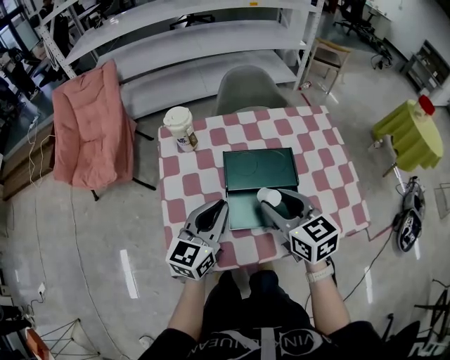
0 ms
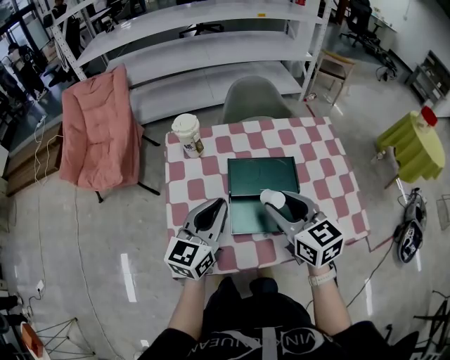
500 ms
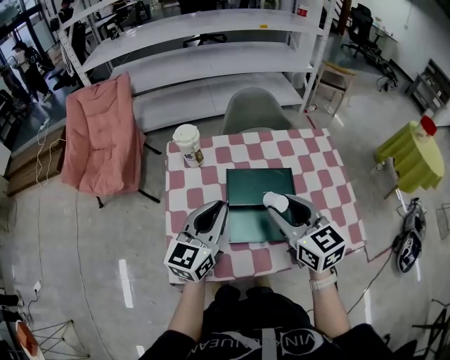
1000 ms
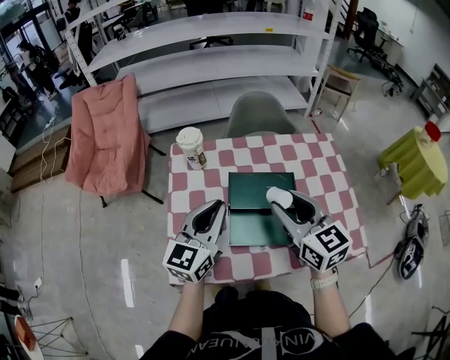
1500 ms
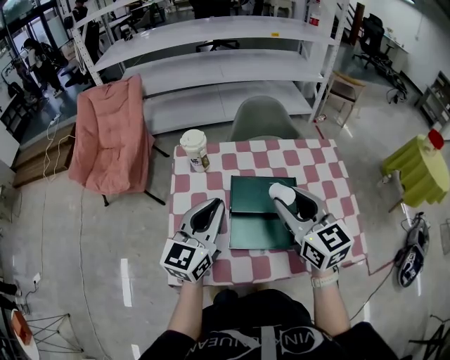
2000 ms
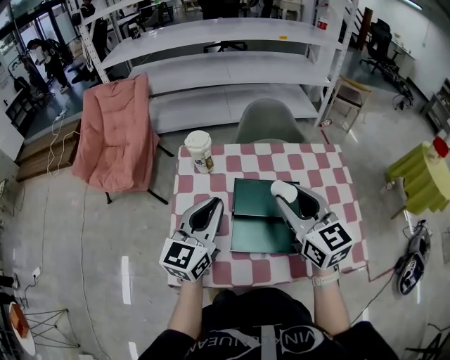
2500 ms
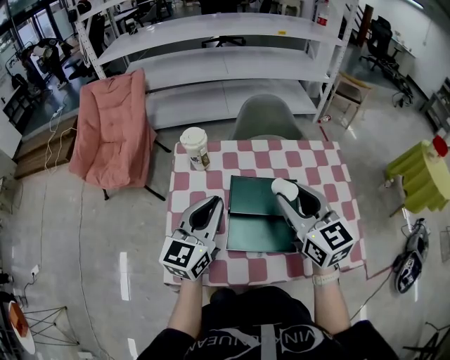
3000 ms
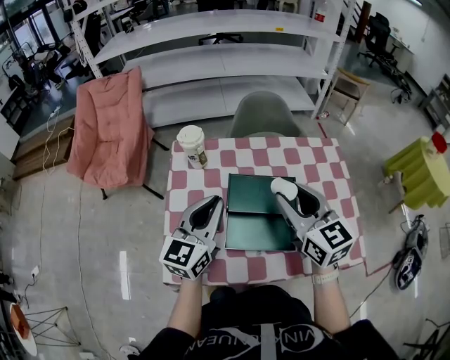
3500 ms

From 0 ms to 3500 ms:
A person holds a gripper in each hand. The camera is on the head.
From 0 ms to 2000 ms: Both grippers travel together upward, approximately 10 cm.
From 2000 ms to 3500 ms: The grippers stay close to where they were, moving slightly.

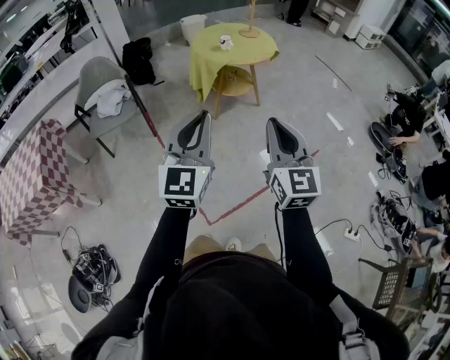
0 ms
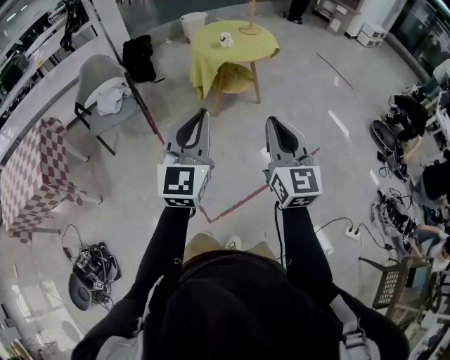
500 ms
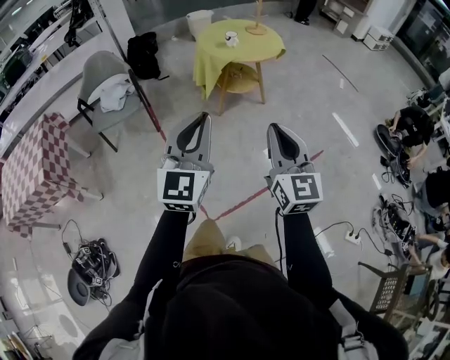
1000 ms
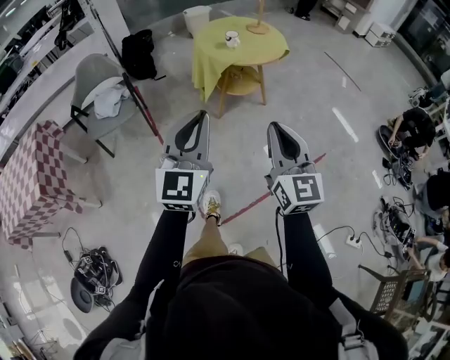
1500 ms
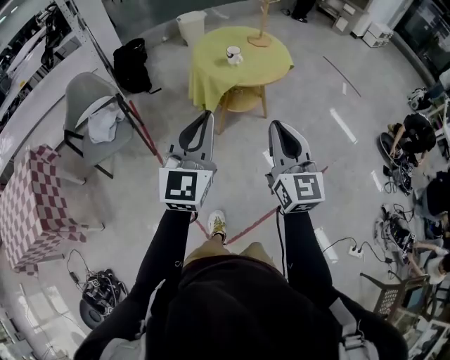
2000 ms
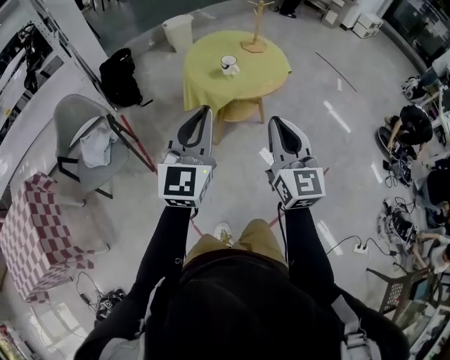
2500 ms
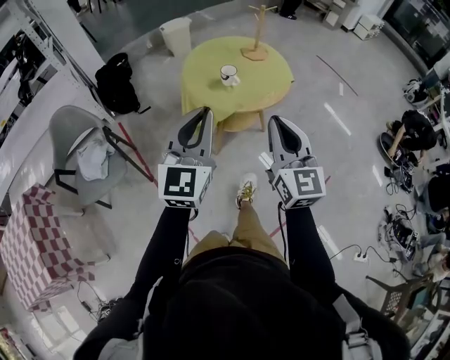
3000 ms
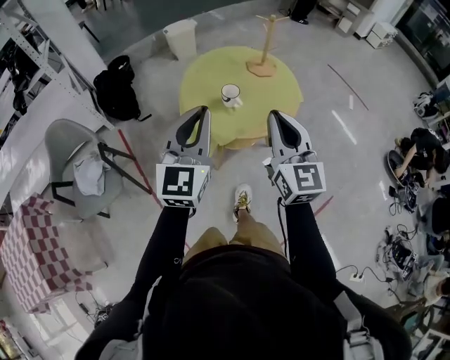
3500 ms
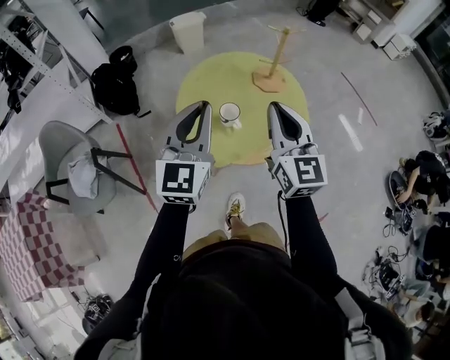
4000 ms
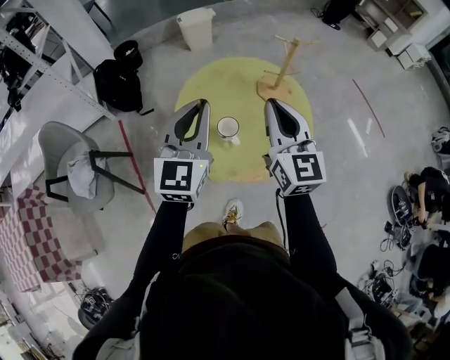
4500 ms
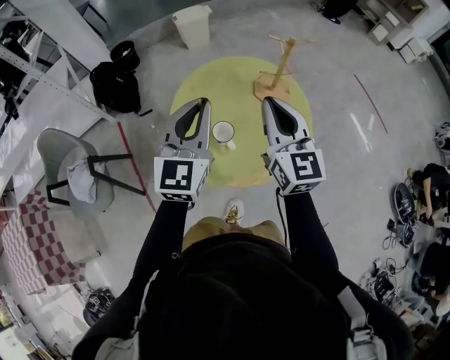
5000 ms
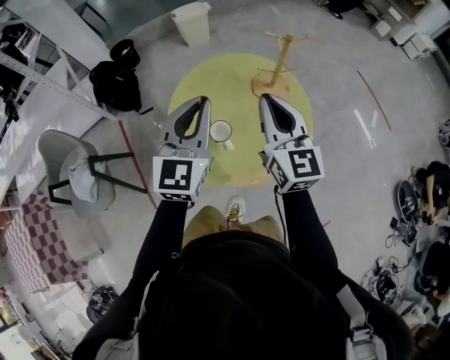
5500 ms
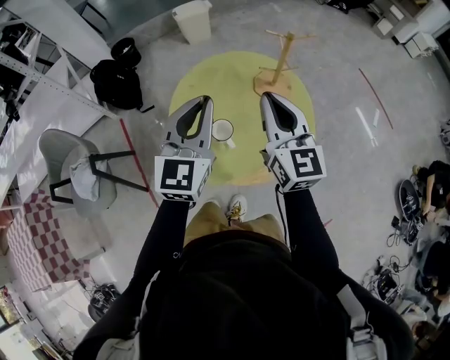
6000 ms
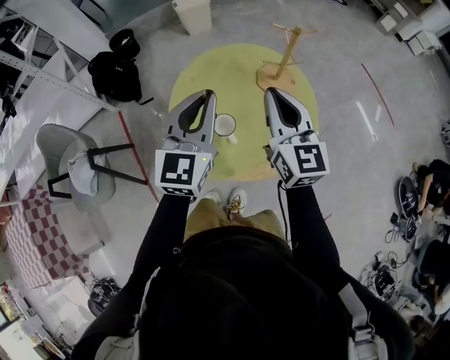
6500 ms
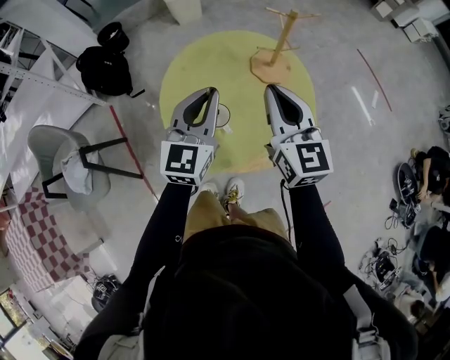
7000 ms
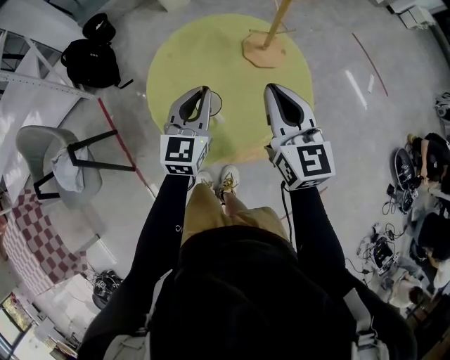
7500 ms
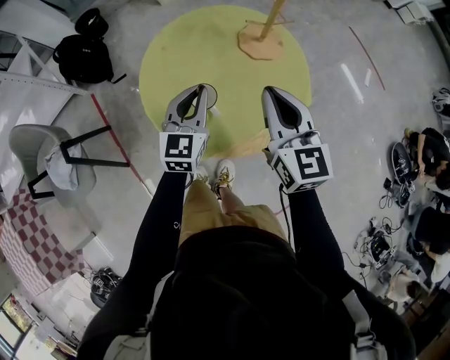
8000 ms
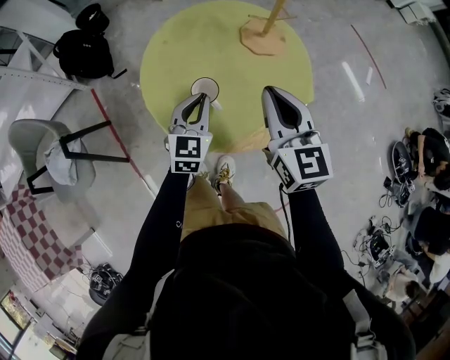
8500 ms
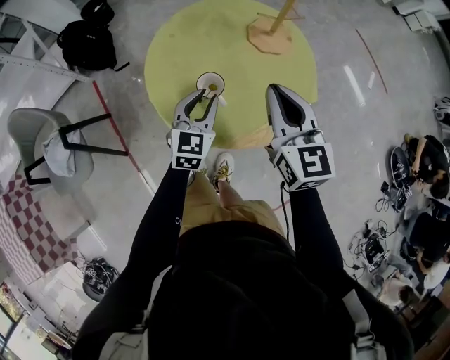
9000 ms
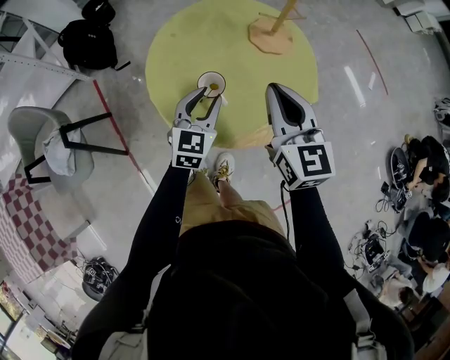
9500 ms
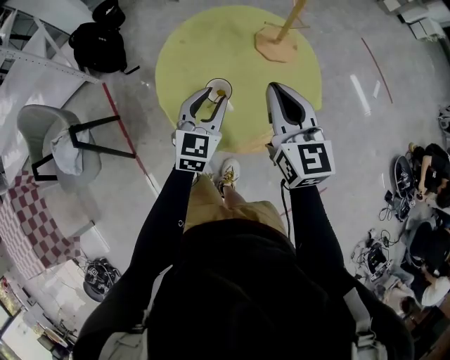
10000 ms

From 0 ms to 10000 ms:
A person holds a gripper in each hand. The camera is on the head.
From 0 ms to 2000 ms: Both grippers move forward, roughly 20 cm.
From 2000 ms to 4000 ms: The two grippers travel together, forward, approximately 40 cm.
From 4000 ms to 6000 ms: The two grippers go about 10 cm forward.
From 6000 ms to 8000 ms: The left gripper goes about 20 cm downward. Meanwhile the right gripper goes about 10 cm downward.
From 8000 ms to 10000 ms: The left gripper opens up.

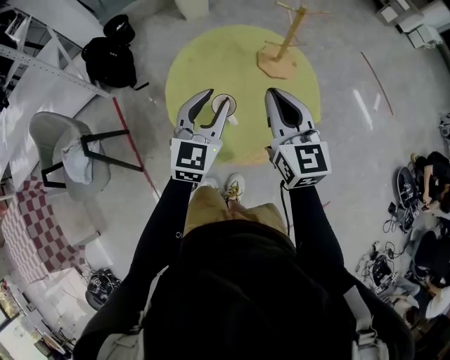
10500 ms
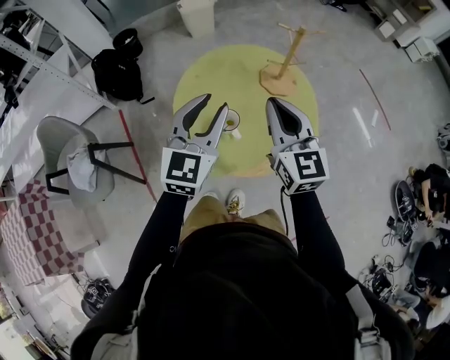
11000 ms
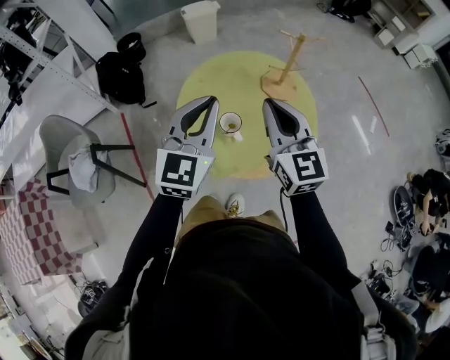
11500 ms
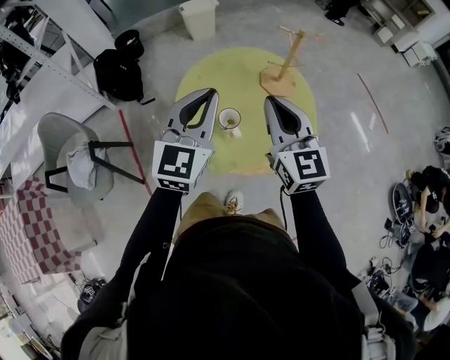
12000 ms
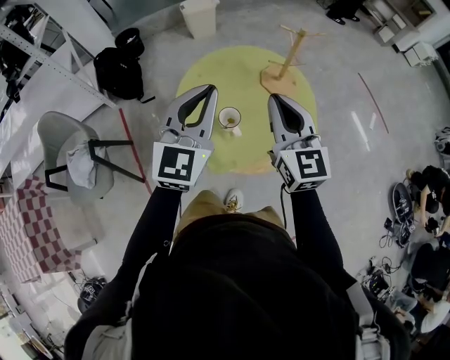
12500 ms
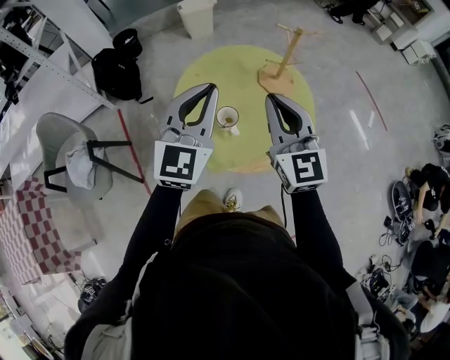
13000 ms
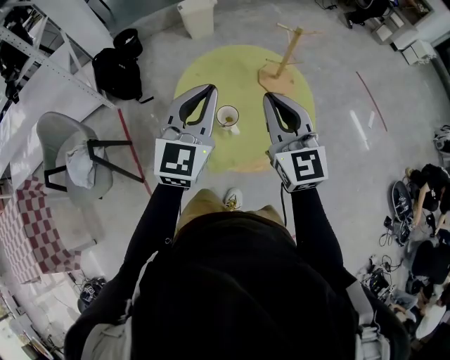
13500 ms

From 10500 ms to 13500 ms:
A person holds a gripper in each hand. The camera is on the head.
From 10500 ms to 12000 ms: The left gripper shifts about 10 cm upward, and closes up. Meanwhile the right gripper moves about 5 cm.
From 12000 ms to 13500 ms: The grippers make only small movements.

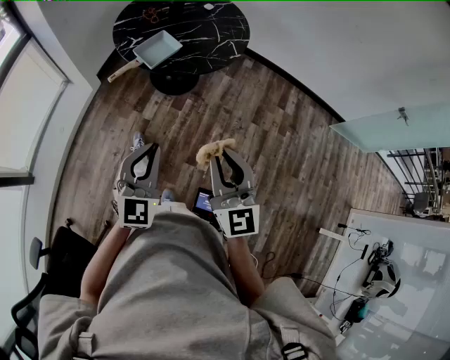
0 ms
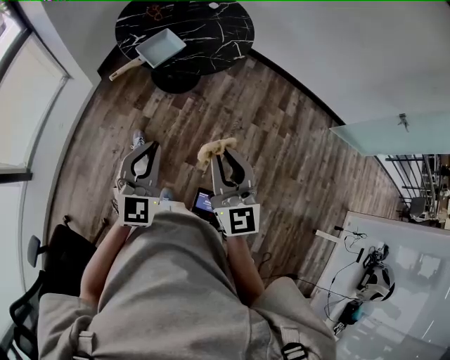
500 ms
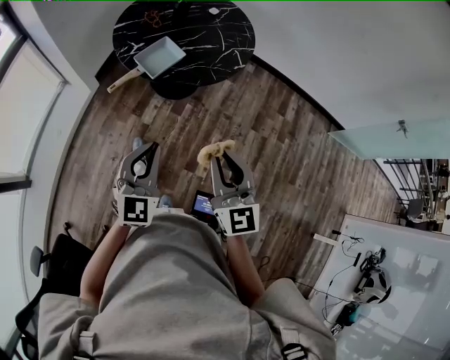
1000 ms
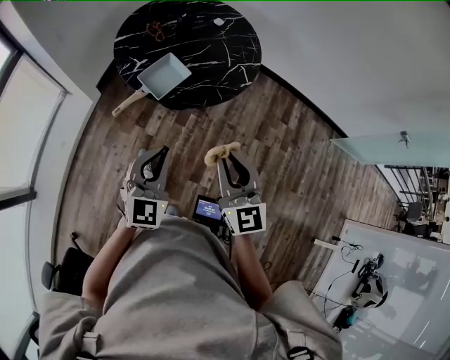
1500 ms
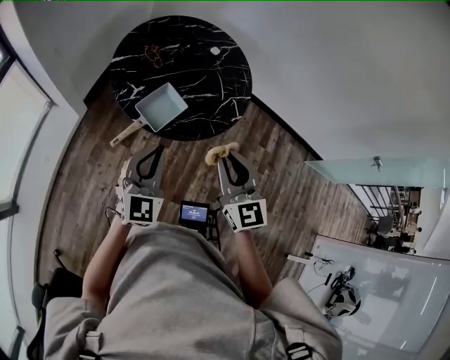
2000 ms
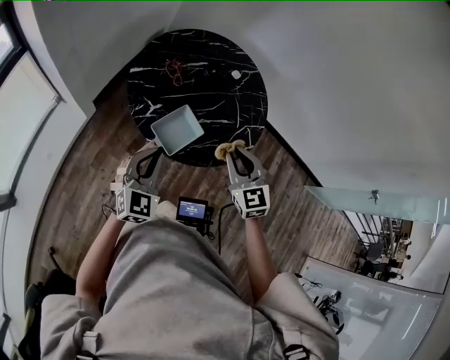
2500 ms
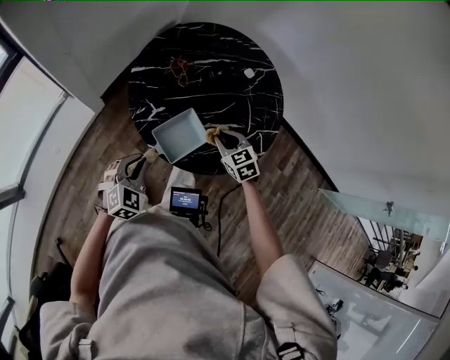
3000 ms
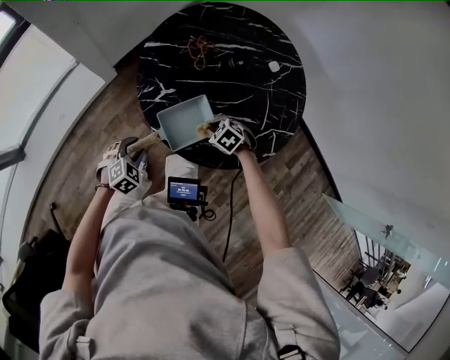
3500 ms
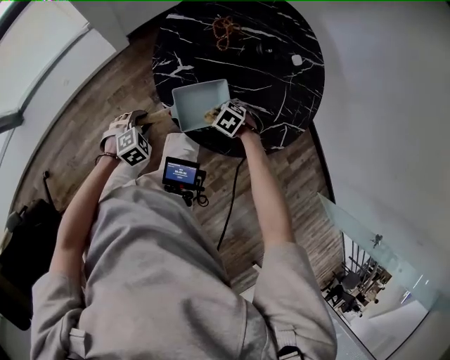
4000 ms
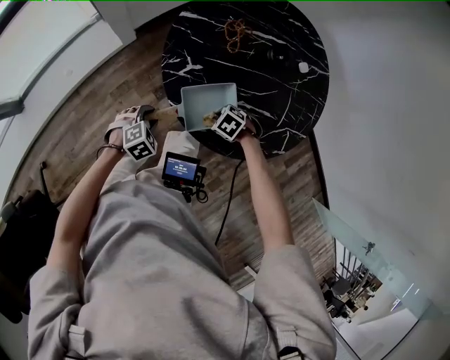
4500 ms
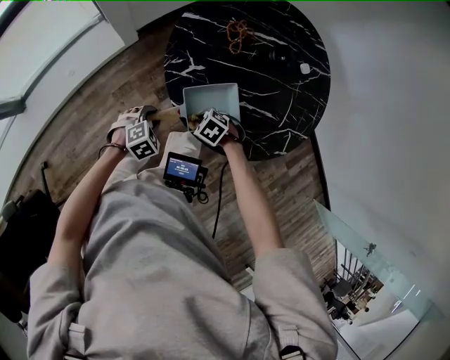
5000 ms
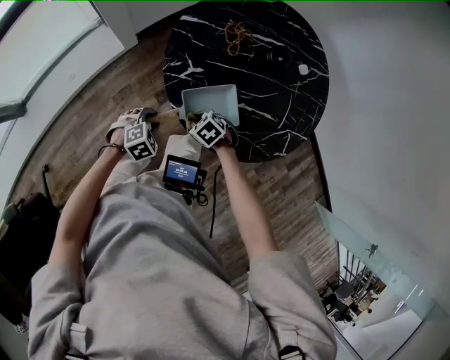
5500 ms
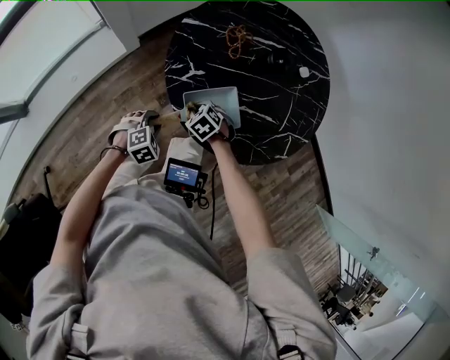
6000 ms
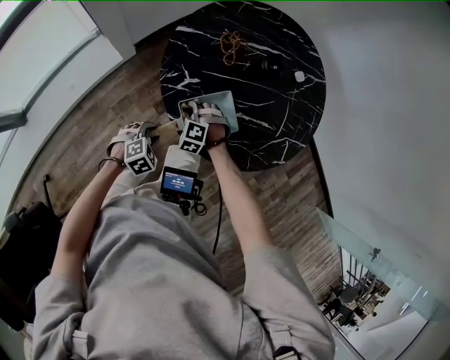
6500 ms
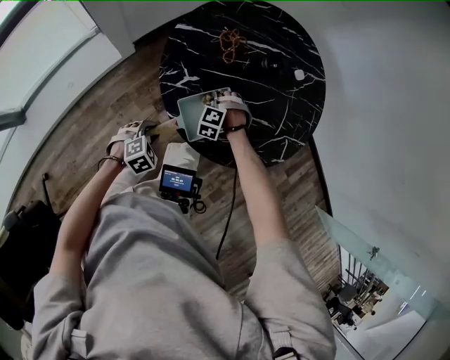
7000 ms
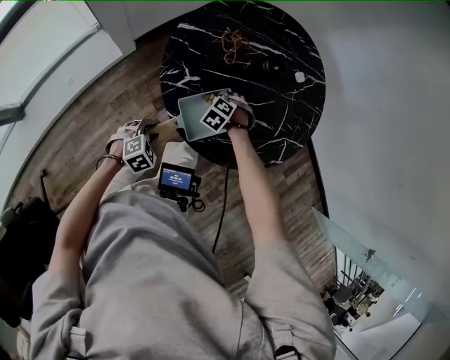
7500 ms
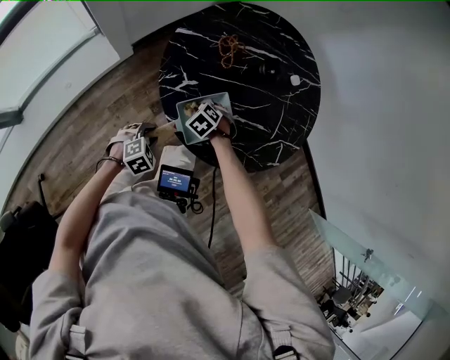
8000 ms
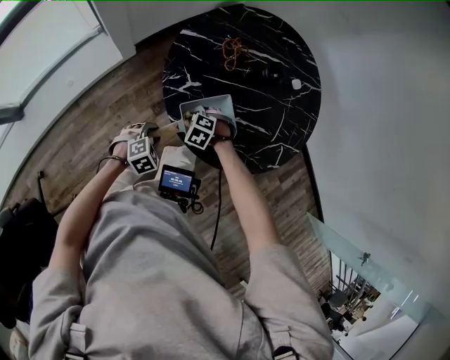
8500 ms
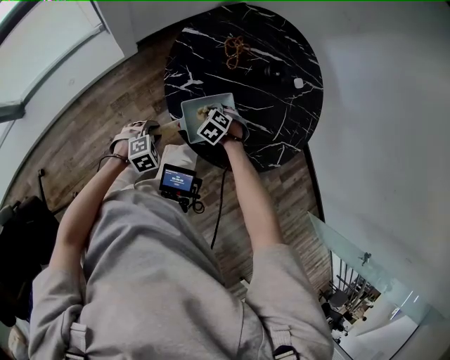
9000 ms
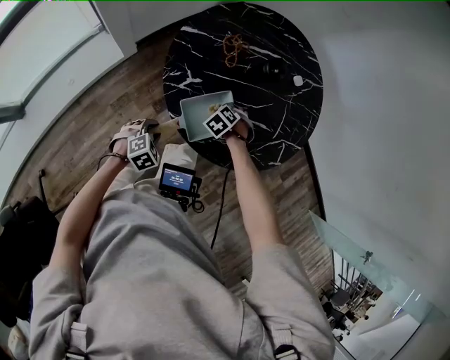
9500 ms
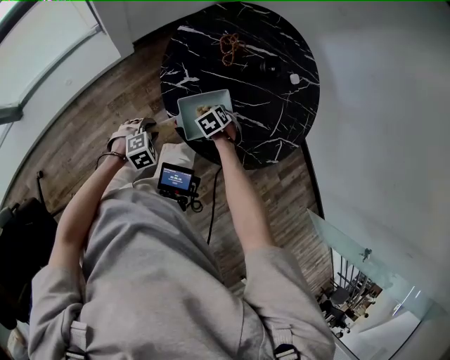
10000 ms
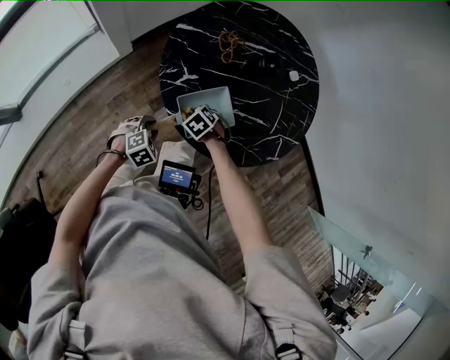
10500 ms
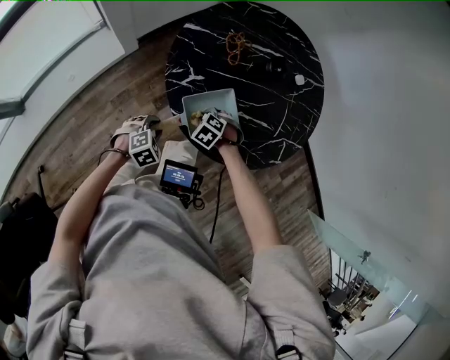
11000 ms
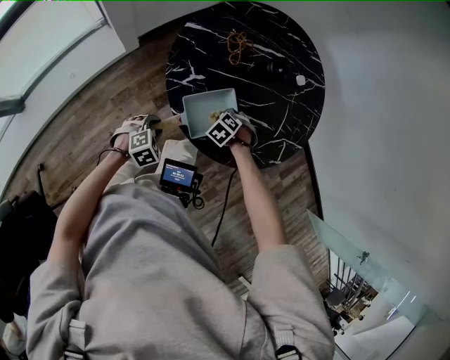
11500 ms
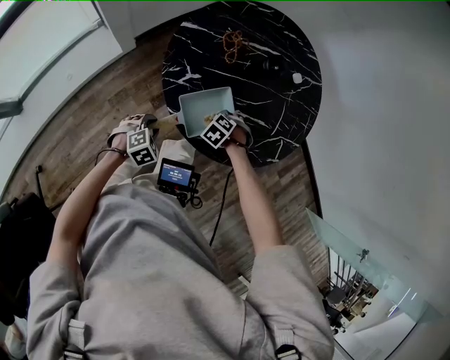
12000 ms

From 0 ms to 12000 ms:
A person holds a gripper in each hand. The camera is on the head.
From 0 ms to 2000 ms: The two grippers go roughly 30 cm forward.
From 2000 ms to 4000 ms: Both grippers travel together downward, some 40 cm. The left gripper tips its fingers downward by some 60 degrees, and opens up, while the right gripper angles its fingers downward, by approximately 70 degrees.
From 4000 ms to 6000 ms: The right gripper ends up about 15 cm from where it was.
